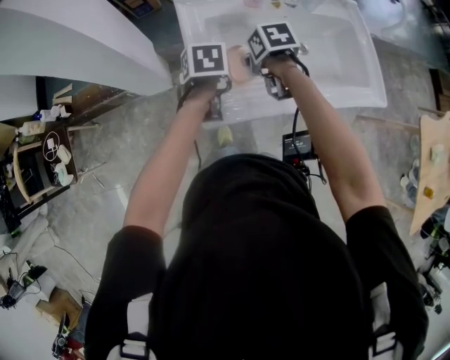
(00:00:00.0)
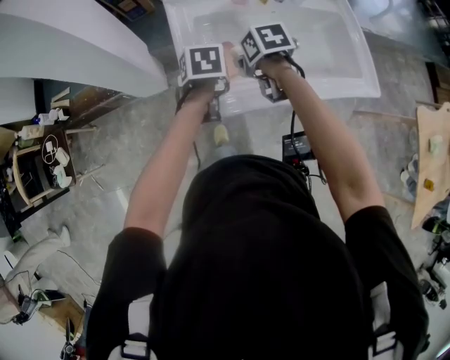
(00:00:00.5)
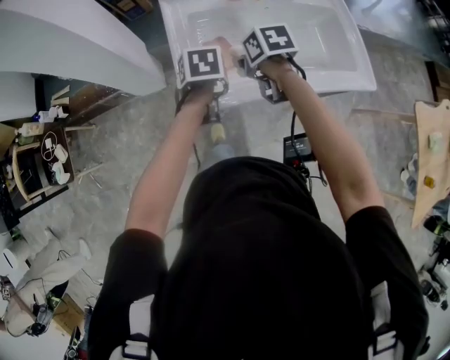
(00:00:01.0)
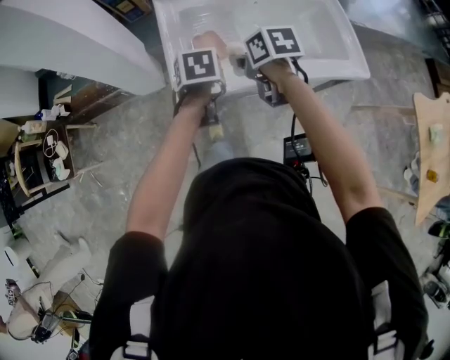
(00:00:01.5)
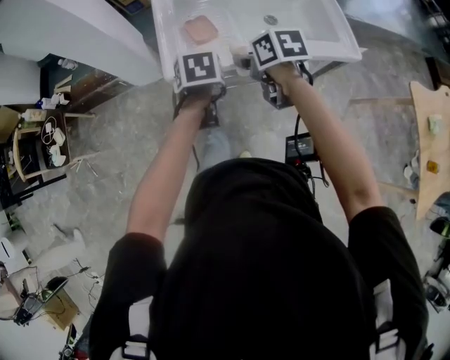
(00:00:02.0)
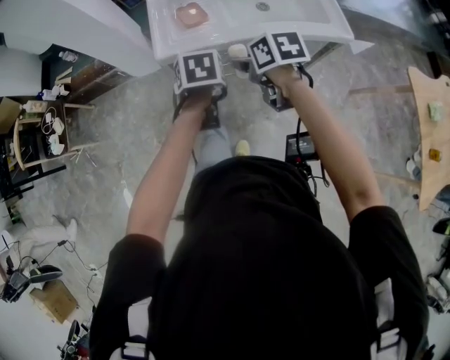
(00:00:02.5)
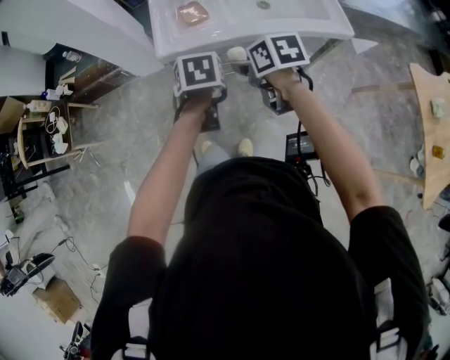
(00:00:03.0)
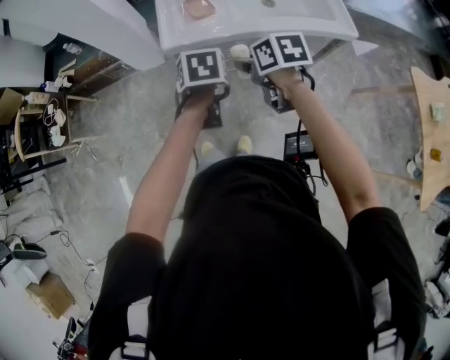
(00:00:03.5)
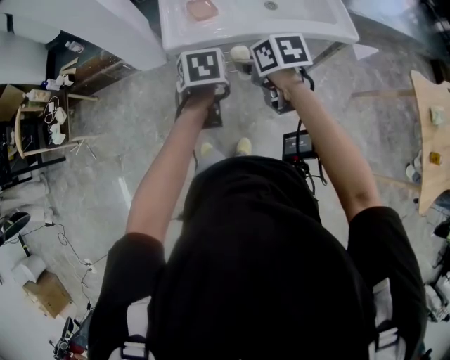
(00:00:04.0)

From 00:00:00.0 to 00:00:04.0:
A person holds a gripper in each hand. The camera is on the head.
From 00:00:00.0 to 00:00:02.0: The two grippers go about 25 cm backward.
From 00:00:02.0 to 00:00:04.0: The grippers both shift backward by roughly 10 cm.

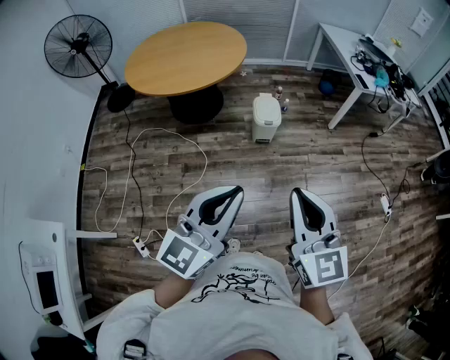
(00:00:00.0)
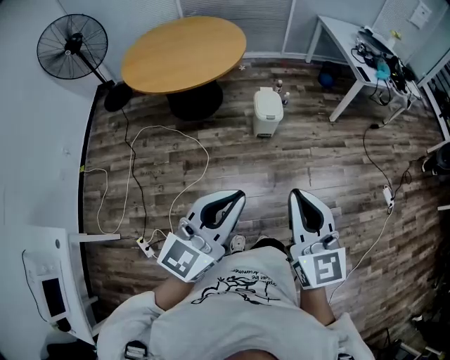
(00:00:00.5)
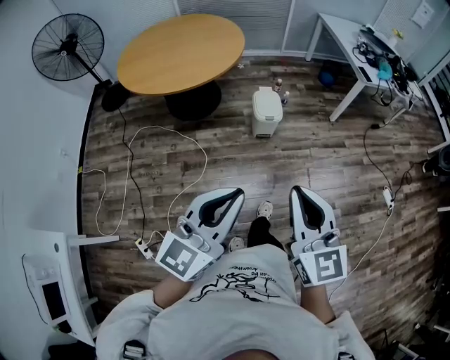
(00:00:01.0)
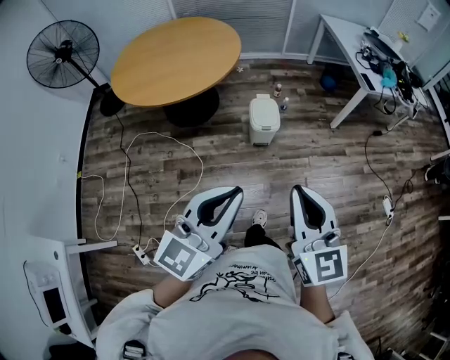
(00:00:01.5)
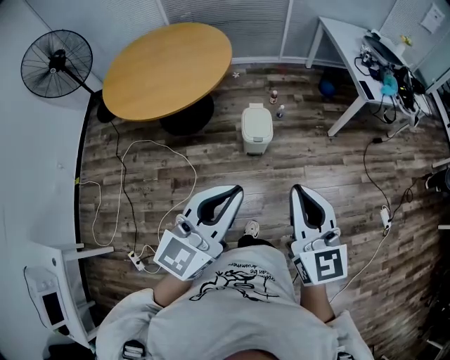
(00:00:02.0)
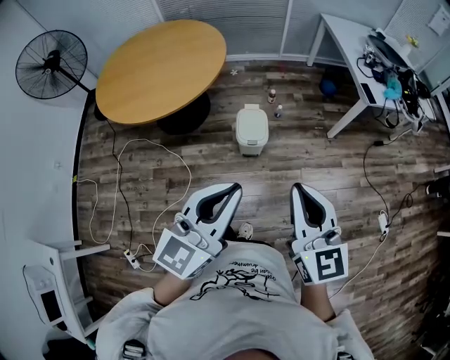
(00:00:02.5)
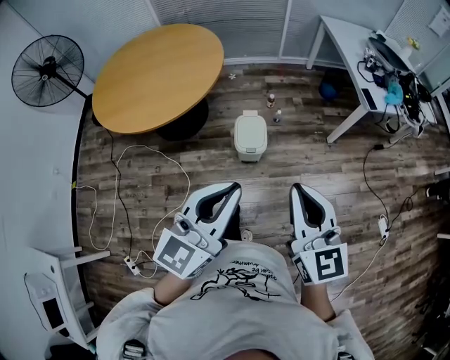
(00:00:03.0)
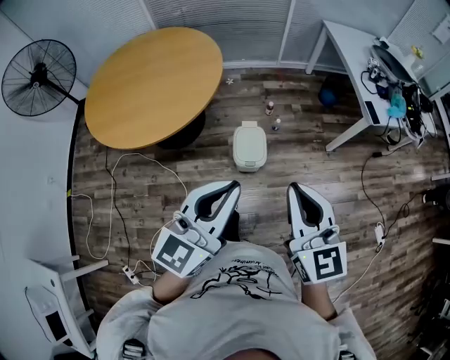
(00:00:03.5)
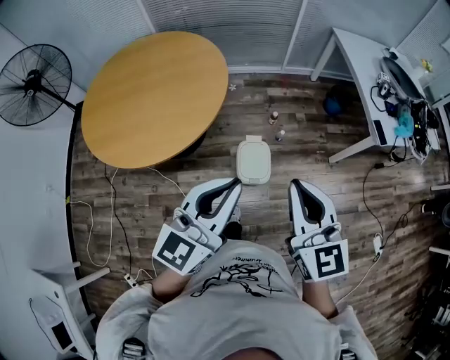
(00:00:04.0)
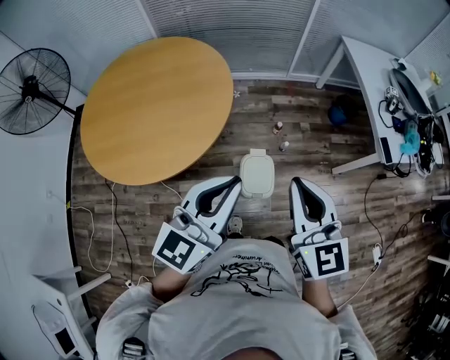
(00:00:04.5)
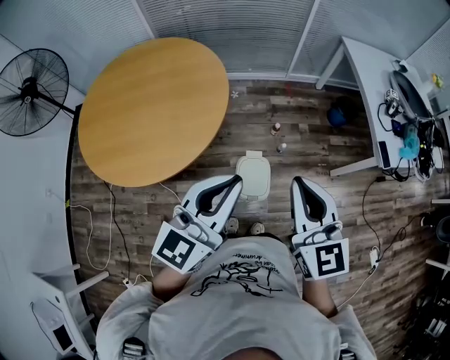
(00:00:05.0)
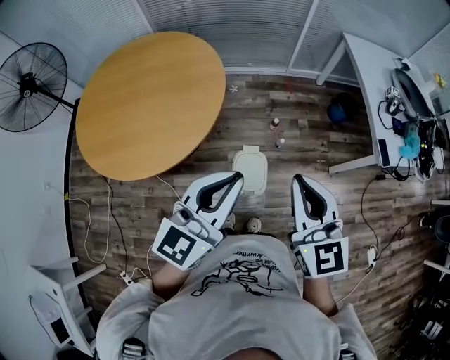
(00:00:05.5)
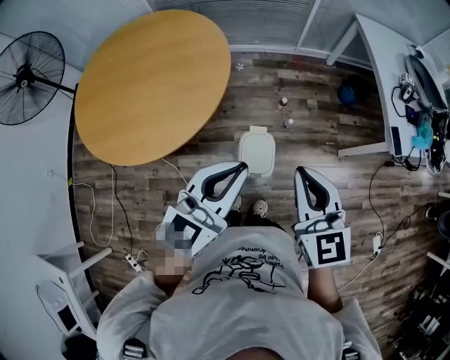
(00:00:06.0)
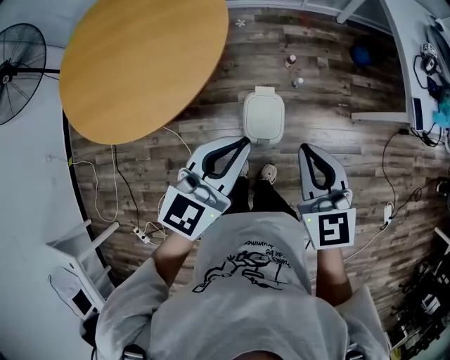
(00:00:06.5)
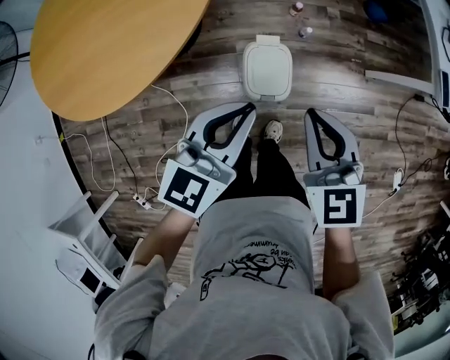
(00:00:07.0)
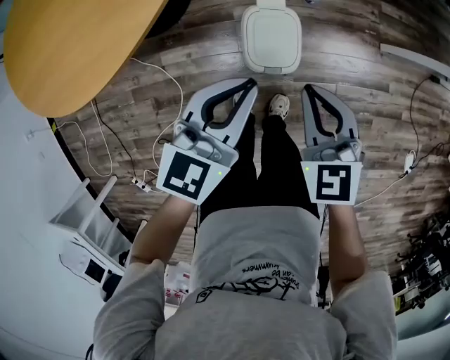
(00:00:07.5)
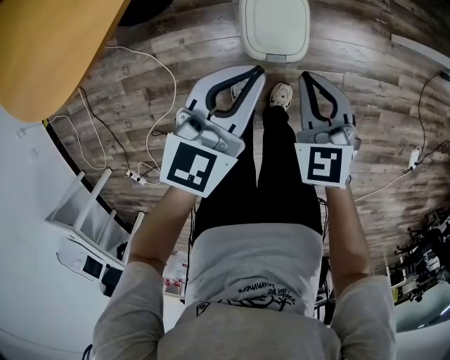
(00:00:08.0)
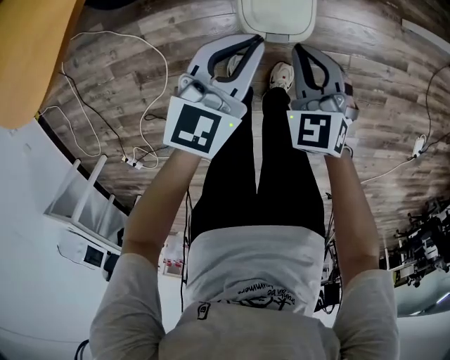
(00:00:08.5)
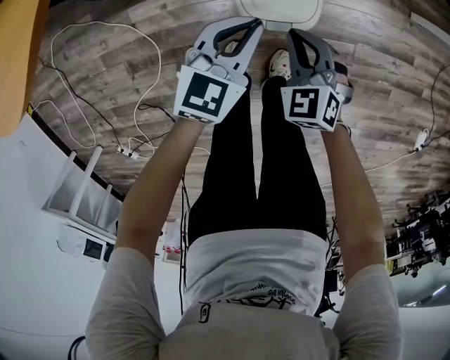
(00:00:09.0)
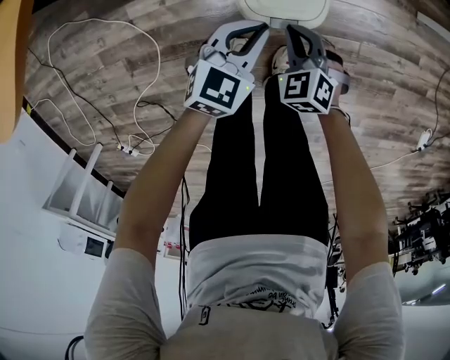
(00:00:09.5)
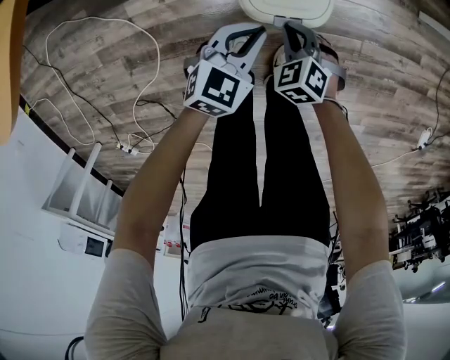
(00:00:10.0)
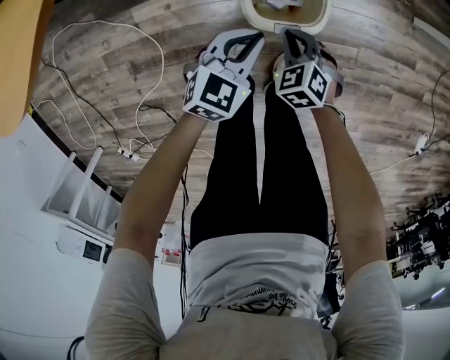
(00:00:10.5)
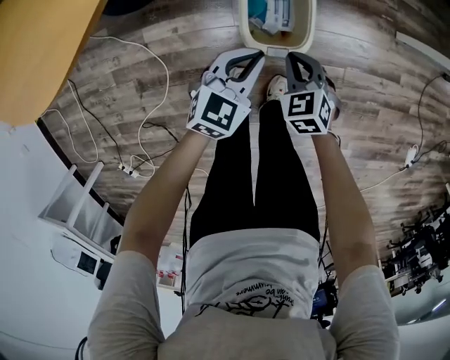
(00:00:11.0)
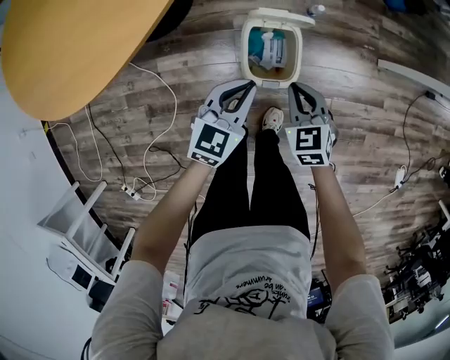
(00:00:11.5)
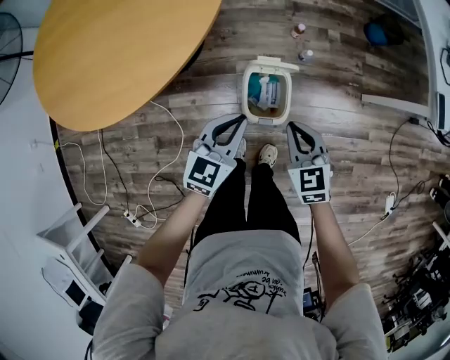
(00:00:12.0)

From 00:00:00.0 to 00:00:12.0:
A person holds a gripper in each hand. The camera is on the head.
From 00:00:00.0 to 00:00:02.0: The two grippers go approximately 25 cm forward.
From 00:00:02.0 to 00:00:04.0: Both grippers move forward, approximately 35 cm.
From 00:00:04.0 to 00:00:06.0: Both grippers move forward and downward, some 15 cm.
From 00:00:06.0 to 00:00:08.0: Both grippers travel together downward, roughly 40 cm. The right gripper swivels about 30 degrees.
From 00:00:08.0 to 00:00:10.0: Both grippers travel together downward, roughly 30 cm. The left gripper changes its angle by approximately 20 degrees; the right gripper swivels approximately 30 degrees.
From 00:00:10.0 to 00:00:12.0: Both grippers move upward, some 35 cm. The right gripper rotates about 30 degrees. The left gripper swivels approximately 20 degrees.

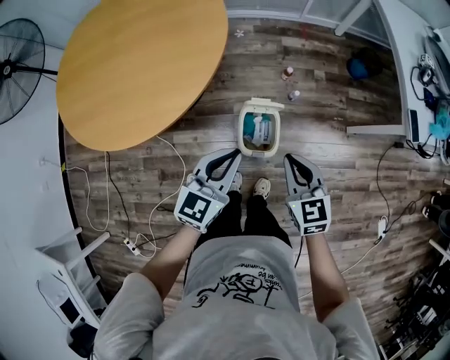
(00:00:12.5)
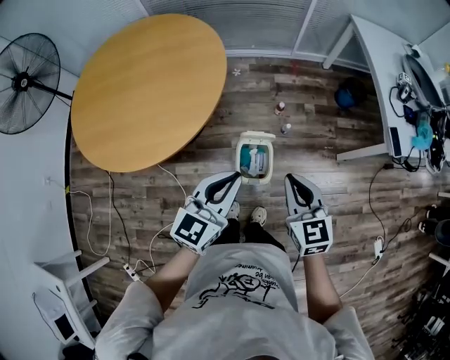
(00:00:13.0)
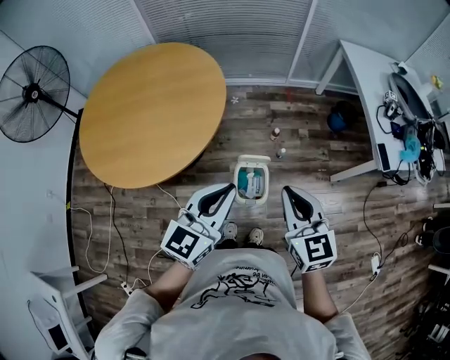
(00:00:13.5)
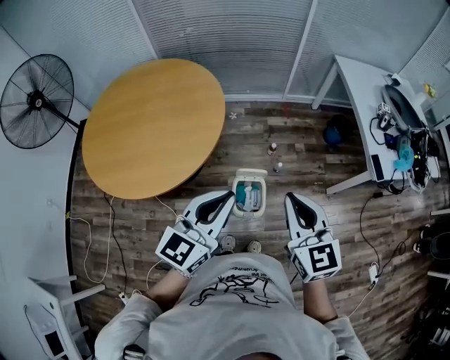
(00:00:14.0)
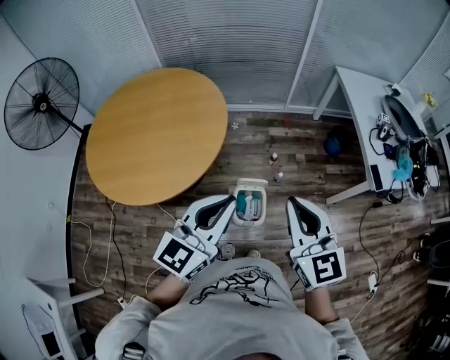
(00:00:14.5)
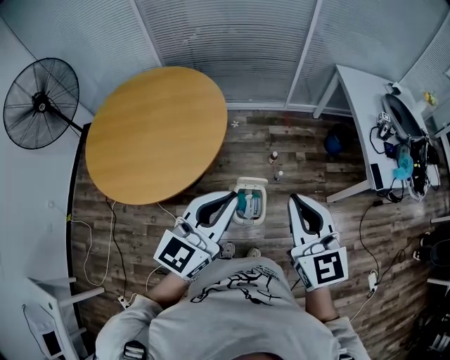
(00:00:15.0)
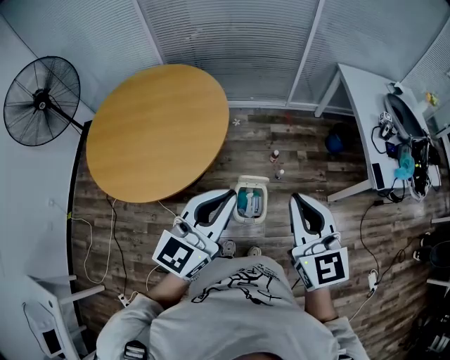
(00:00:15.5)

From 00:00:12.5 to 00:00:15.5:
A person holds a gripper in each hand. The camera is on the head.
From 00:00:12.5 to 00:00:14.0: The grippers both shift upward by approximately 25 cm.
From 00:00:14.0 to 00:00:15.5: The grippers both shift upward by roughly 5 cm.

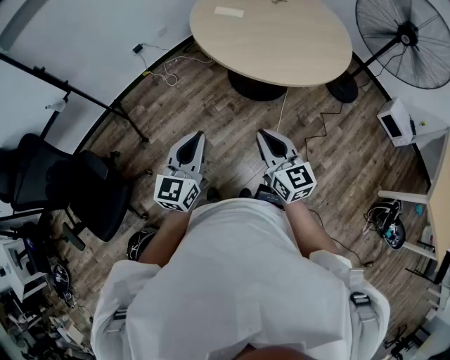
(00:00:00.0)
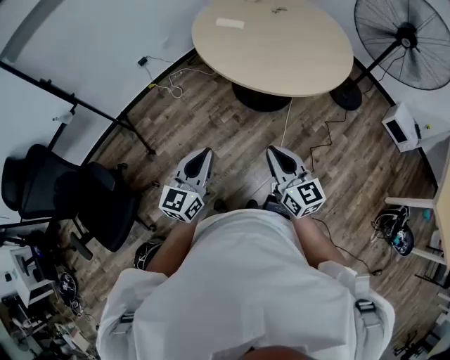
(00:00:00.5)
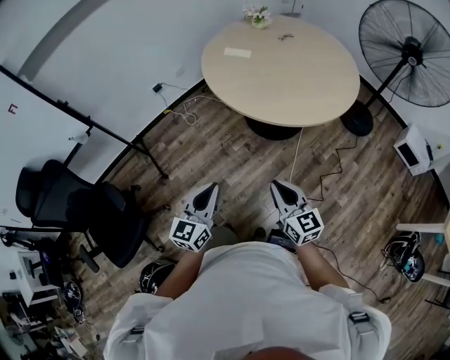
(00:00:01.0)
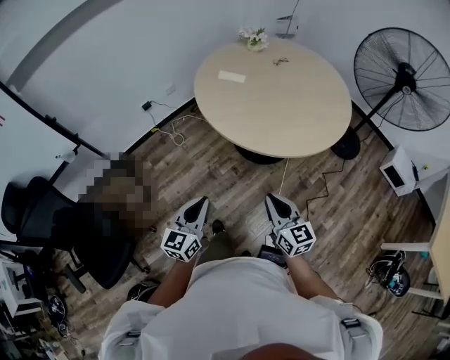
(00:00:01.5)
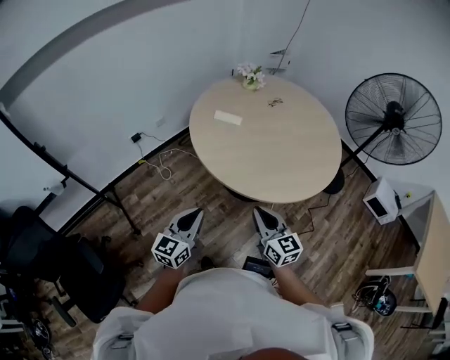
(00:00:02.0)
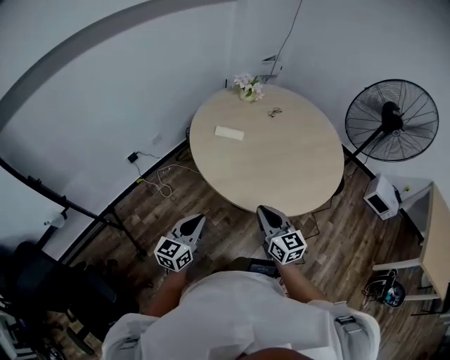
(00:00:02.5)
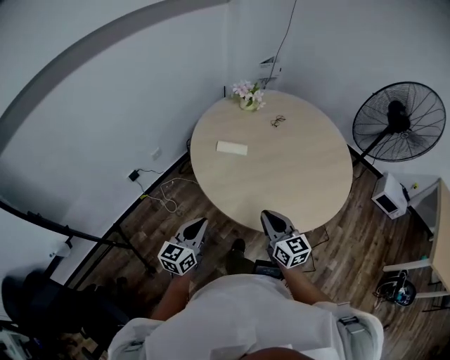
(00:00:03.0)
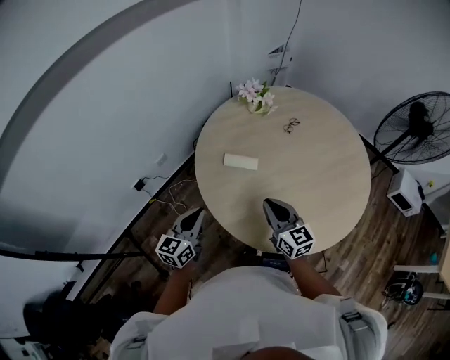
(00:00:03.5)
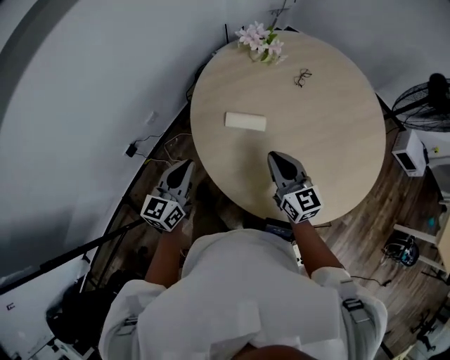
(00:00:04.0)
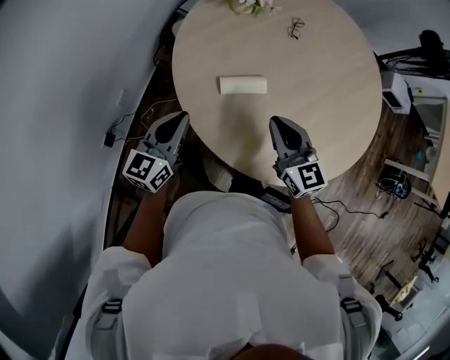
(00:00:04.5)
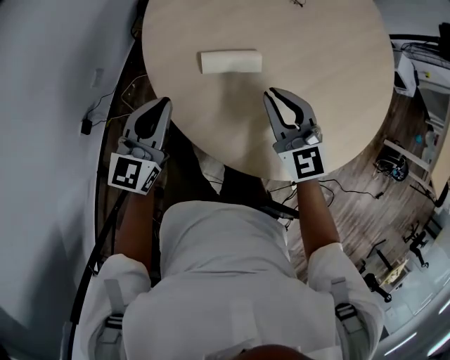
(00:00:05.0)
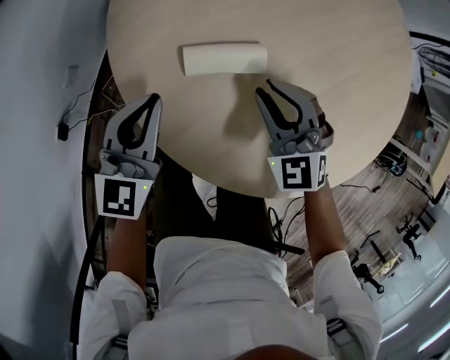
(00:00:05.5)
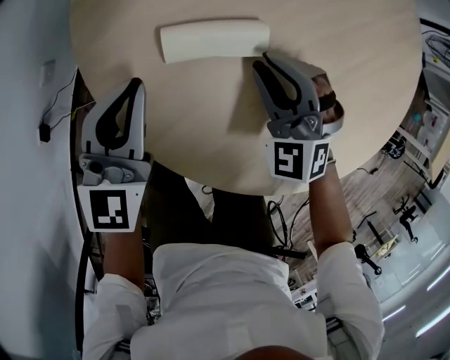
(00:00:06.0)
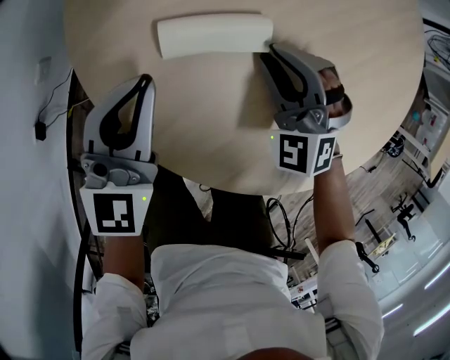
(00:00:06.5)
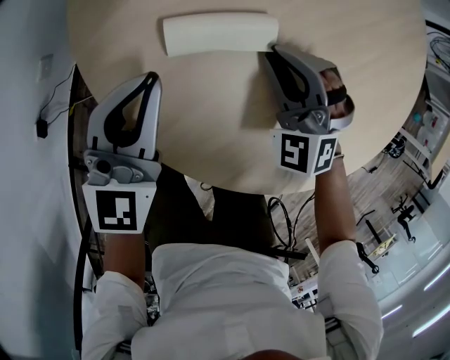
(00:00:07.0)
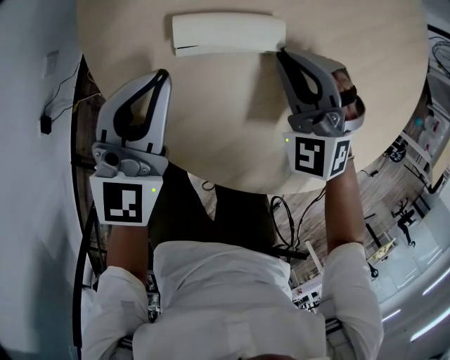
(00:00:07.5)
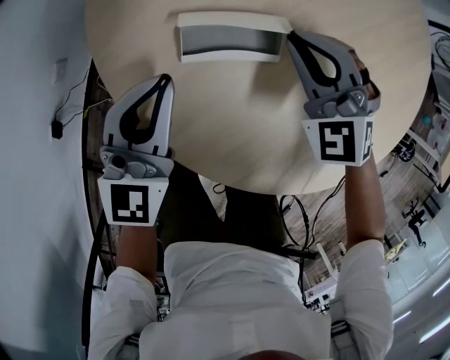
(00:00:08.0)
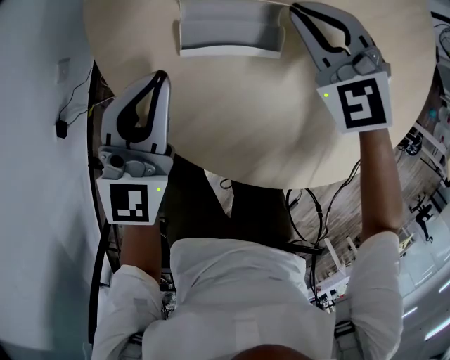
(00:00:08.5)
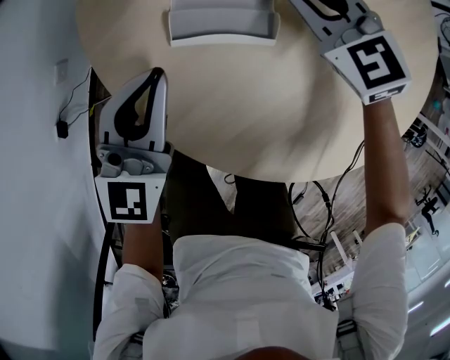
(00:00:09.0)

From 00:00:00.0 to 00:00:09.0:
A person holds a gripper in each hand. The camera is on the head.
From 00:00:00.0 to 00:00:02.0: Both grippers travel together forward, about 20 cm.
From 00:00:02.0 to 00:00:04.5: The two grippers travel together, forward, about 50 cm. The left gripper rotates approximately 30 degrees. Meanwhile the right gripper changes its angle by approximately 20 degrees.
From 00:00:04.5 to 00:00:07.0: The right gripper heads downward, covering roughly 20 cm, and twists about 60 degrees counterclockwise, seen from behind; the left gripper is displaced downward and to the right by roughly 15 cm, and rotates roughly 20 degrees.
From 00:00:07.0 to 00:00:09.0: The right gripper heads forward, covering about 10 cm, and swivels roughly 30 degrees.
